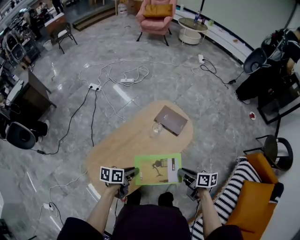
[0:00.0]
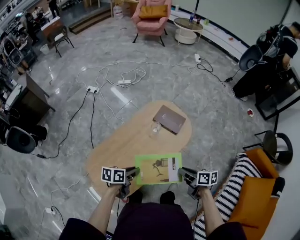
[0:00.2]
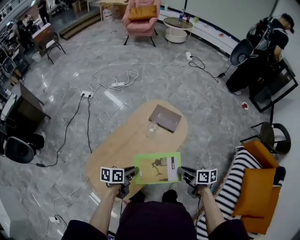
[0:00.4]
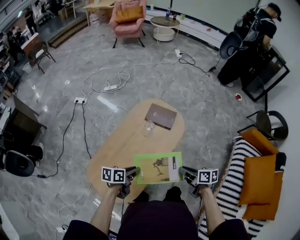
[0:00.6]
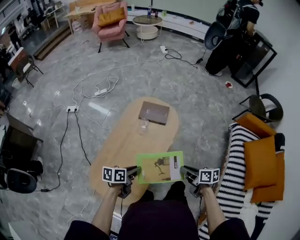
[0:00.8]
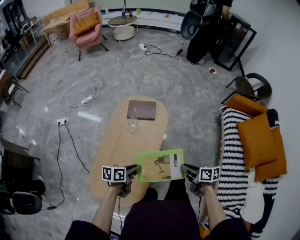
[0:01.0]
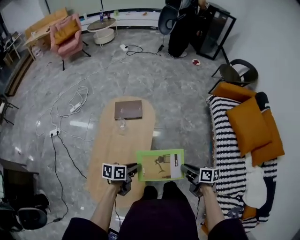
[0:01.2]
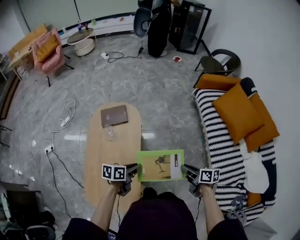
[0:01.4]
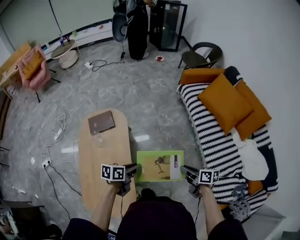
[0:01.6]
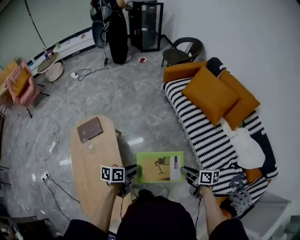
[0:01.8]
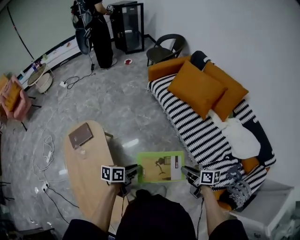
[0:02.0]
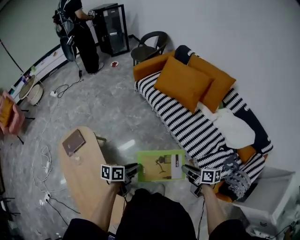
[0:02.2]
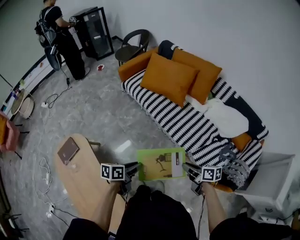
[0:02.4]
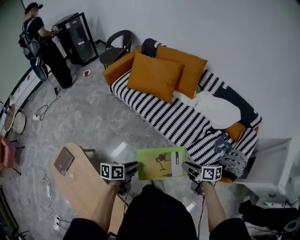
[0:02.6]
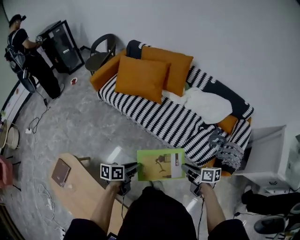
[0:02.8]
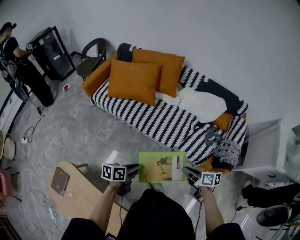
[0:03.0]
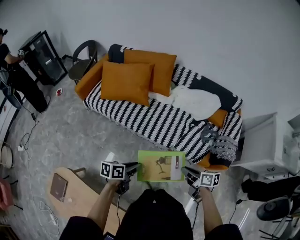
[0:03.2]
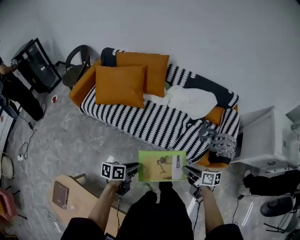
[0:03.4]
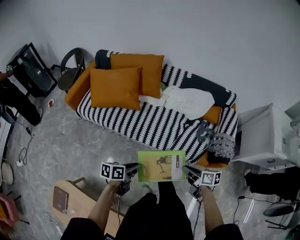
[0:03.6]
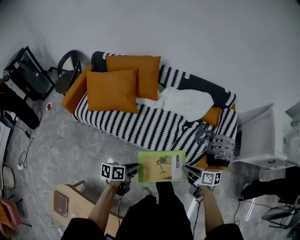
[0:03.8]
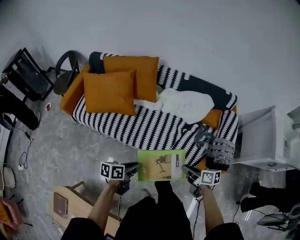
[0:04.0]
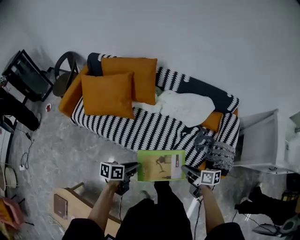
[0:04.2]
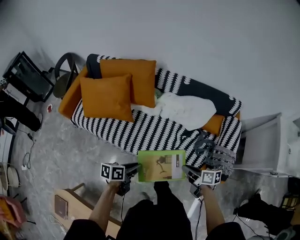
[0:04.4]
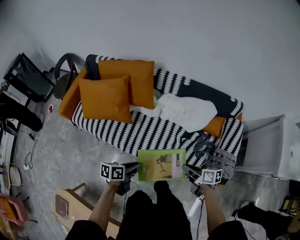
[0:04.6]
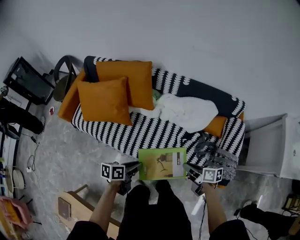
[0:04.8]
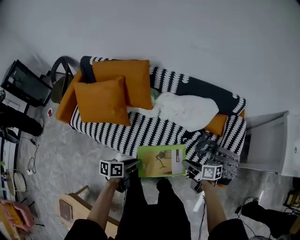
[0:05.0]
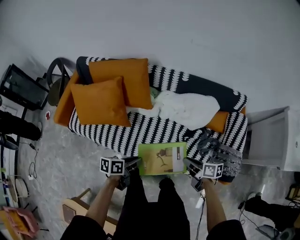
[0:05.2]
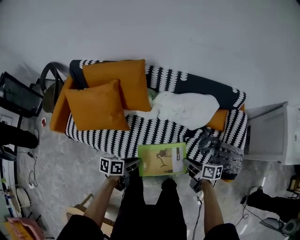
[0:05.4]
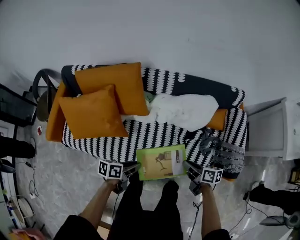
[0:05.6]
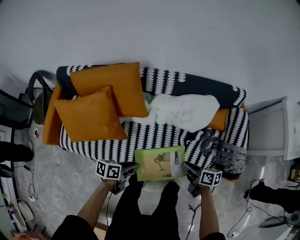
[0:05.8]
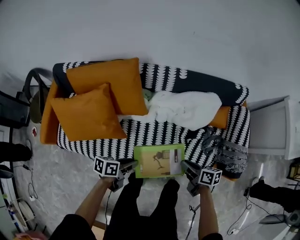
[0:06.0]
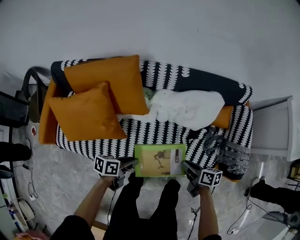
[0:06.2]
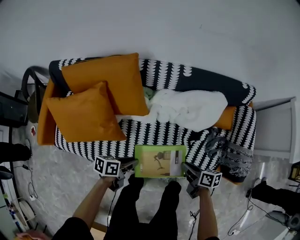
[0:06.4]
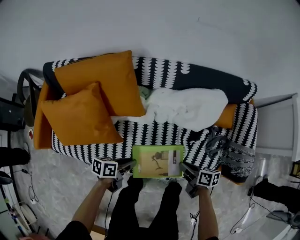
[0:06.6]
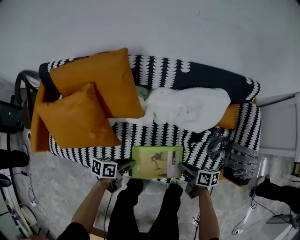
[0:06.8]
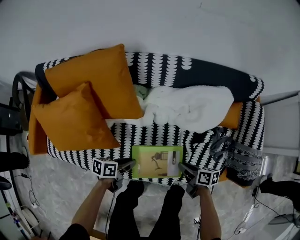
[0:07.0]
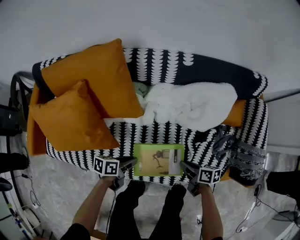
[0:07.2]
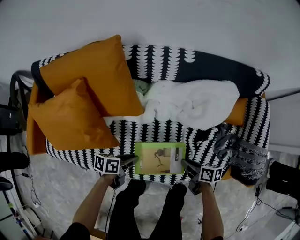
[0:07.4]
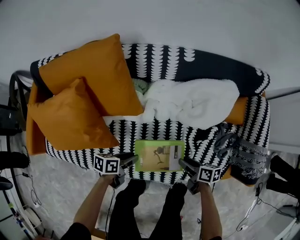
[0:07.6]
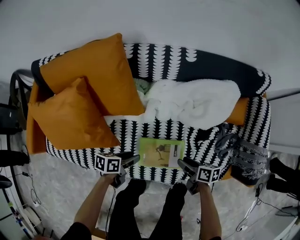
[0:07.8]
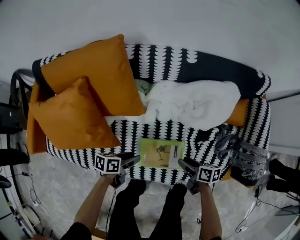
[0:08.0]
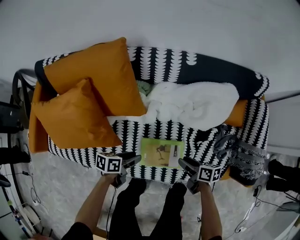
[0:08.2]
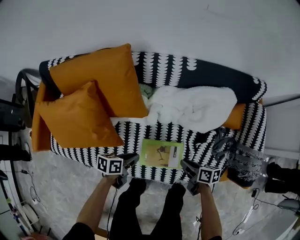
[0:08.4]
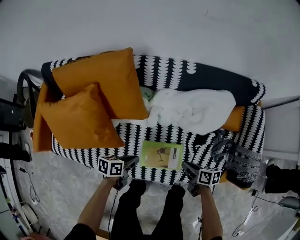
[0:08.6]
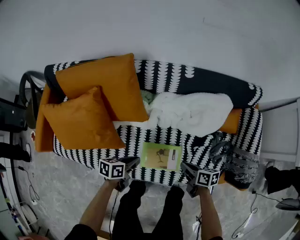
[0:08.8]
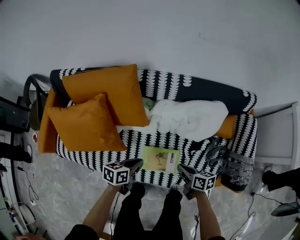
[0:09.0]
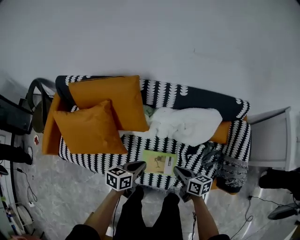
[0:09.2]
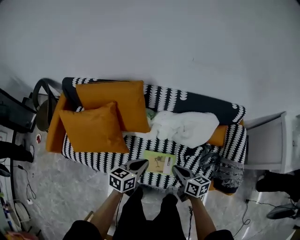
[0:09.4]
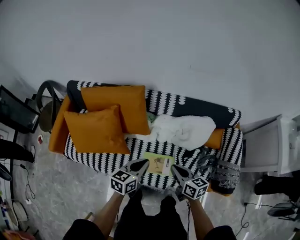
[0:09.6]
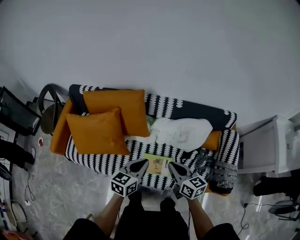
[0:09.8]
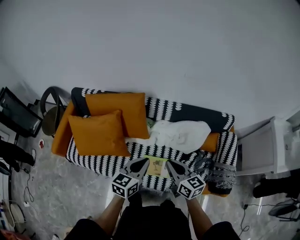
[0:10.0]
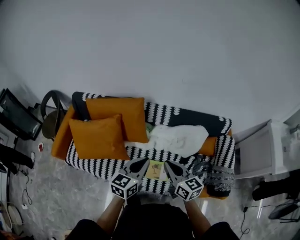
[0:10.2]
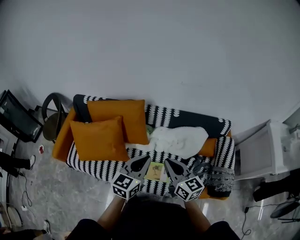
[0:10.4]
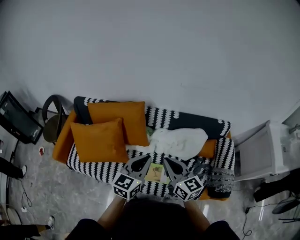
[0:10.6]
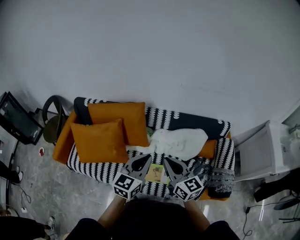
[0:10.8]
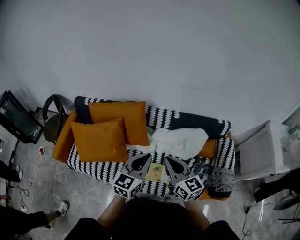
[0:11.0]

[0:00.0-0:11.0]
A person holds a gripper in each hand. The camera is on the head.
0:00.0 to 0:01.6: The left gripper changes place by some 20 cm, and turns by roughly 60 degrees; the right gripper moves approximately 35 cm, and rotates some 60 degrees.
0:01.6 to 0:03.2: The right gripper ends up approximately 35 cm from where it was, and turns by approximately 50 degrees. Meanwhile the left gripper shifts by about 35 cm, and swivels some 60 degrees.
0:03.2 to 0:04.8: The grippers both shift forward and to the right by some 30 cm.
0:04.8 to 0:06.2: The left gripper moves forward, downward and to the left, about 20 cm, and changes its angle by roughly 20 degrees. Meanwhile the right gripper goes some 15 cm to the left, downward and forward.
0:06.2 to 0:07.8: The two grippers go roughly 20 cm downward. The left gripper opens its fingers. Meanwhile the right gripper opens.
0:07.8 to 0:09.4: Both grippers travel together upward, approximately 30 cm. The left gripper rotates approximately 30 degrees, and closes. Meanwhile the right gripper swivels about 30 degrees, and closes up.
0:09.4 to 0:11.0: The grippers both shift upward by roughly 25 cm. The left gripper turns by some 30 degrees. Meanwhile the right gripper turns by approximately 40 degrees.

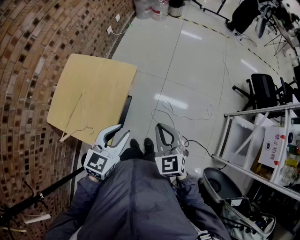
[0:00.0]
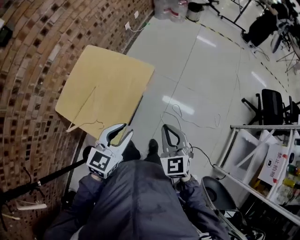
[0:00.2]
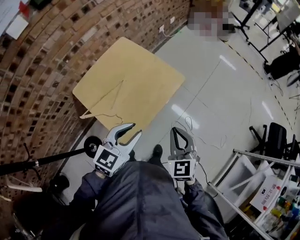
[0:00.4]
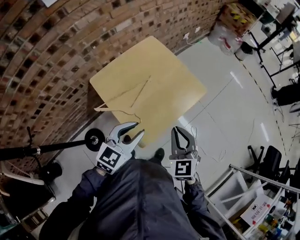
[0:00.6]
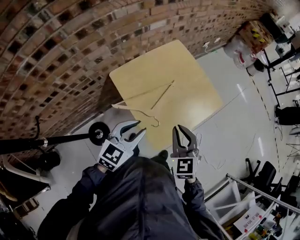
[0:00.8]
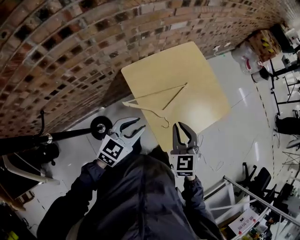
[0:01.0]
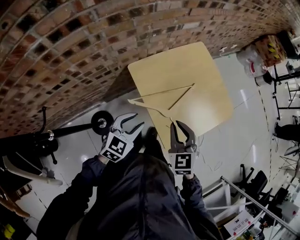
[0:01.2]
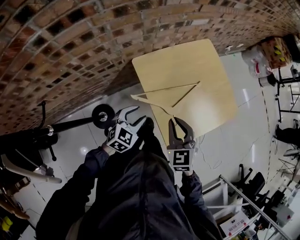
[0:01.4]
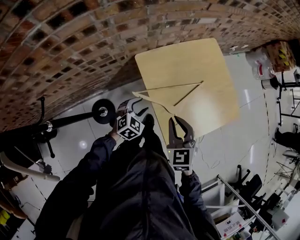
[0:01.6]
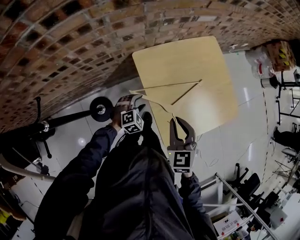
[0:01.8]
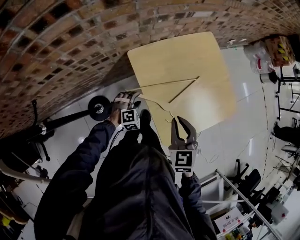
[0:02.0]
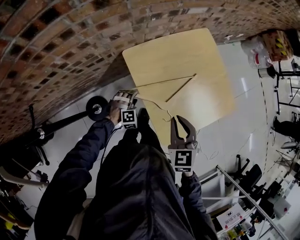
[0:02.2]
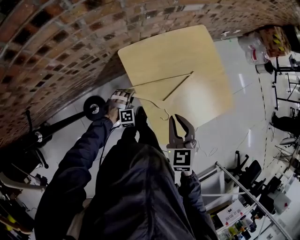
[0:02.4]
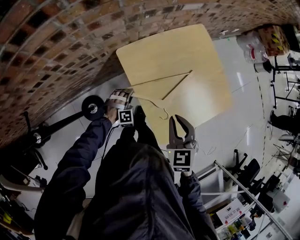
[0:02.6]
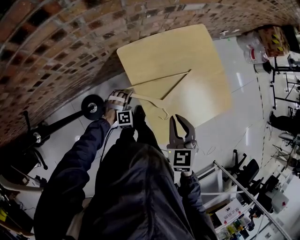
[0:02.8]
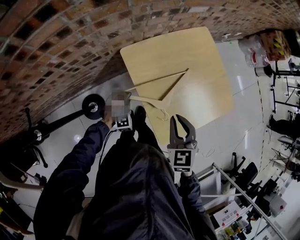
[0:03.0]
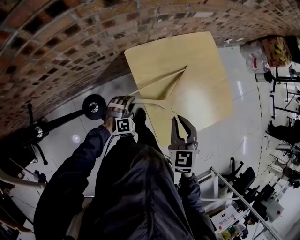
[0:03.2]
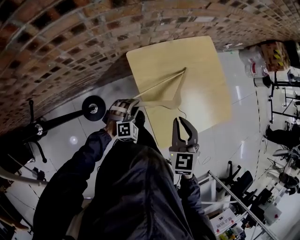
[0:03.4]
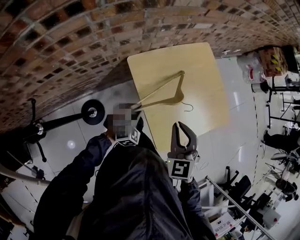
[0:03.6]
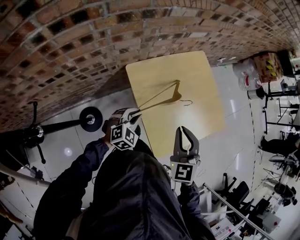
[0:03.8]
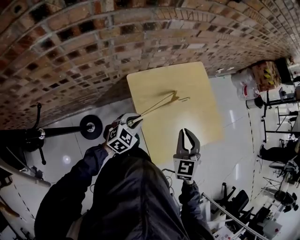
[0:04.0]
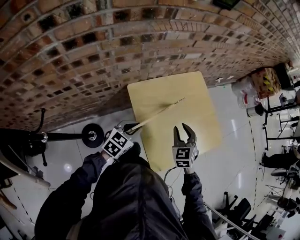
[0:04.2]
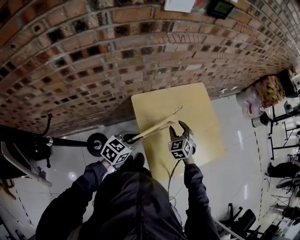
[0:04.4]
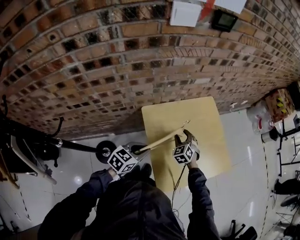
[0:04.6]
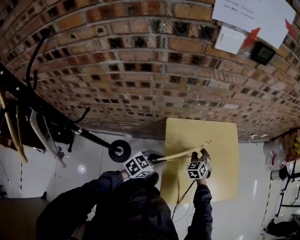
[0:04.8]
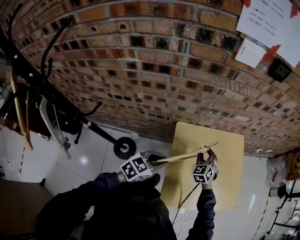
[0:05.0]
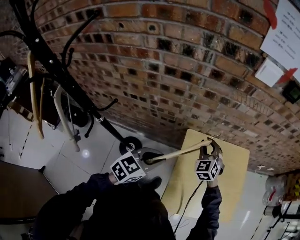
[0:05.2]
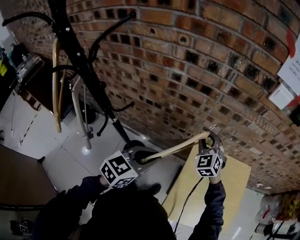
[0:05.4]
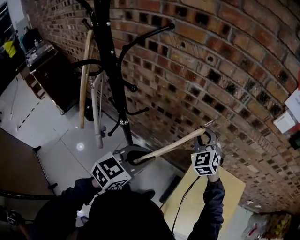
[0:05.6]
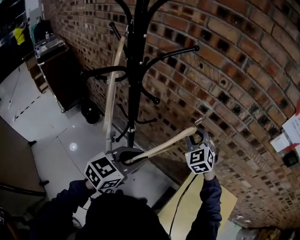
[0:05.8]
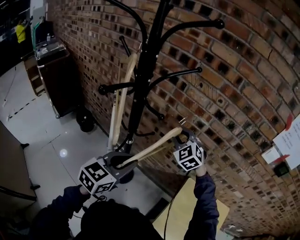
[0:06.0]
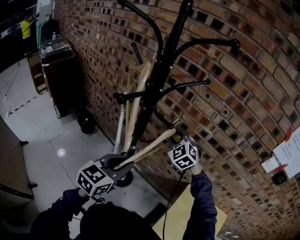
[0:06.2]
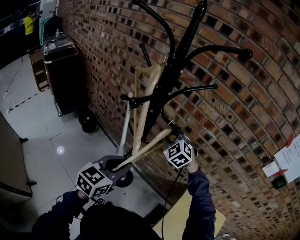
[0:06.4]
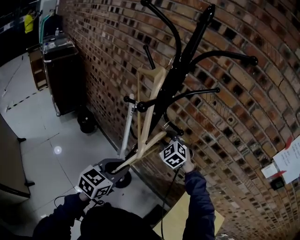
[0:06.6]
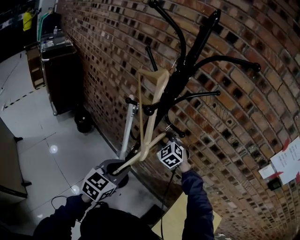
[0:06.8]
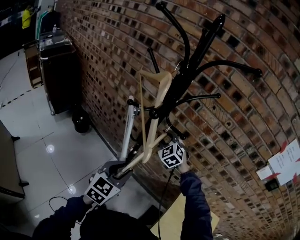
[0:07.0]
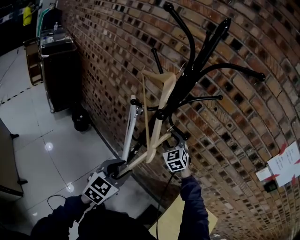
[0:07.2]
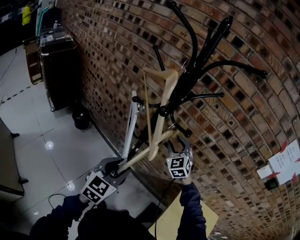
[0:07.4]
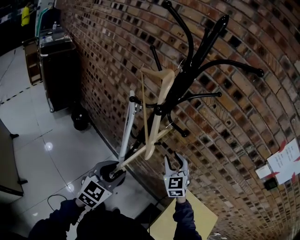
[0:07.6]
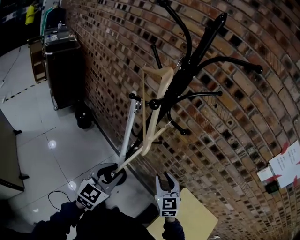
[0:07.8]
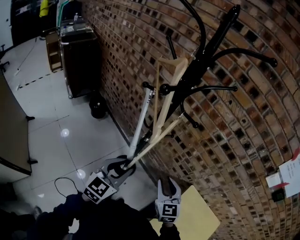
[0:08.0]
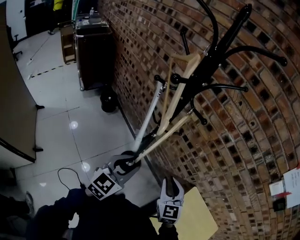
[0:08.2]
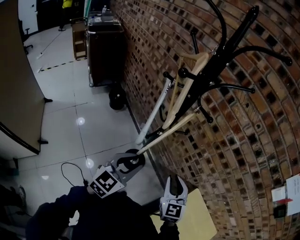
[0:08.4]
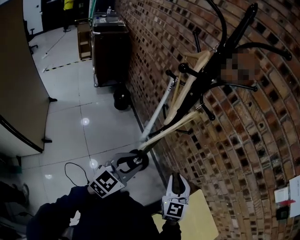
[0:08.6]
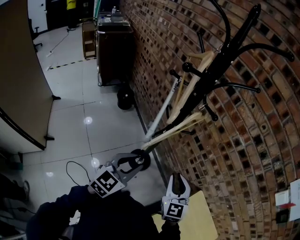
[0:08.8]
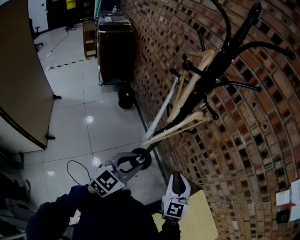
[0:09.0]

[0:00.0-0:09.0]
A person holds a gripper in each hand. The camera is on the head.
0:00.0 to 0:01.6: The two grippers travel together, approximately 40 cm. The left gripper swivels roughly 40 degrees, and opens its fingers. The right gripper changes its angle by about 40 degrees.
0:01.6 to 0:03.0: The left gripper is displaced downward by approximately 10 cm, rolls clockwise, seen from behind, by approximately 50 degrees, and closes.
0:03.0 to 0:04.4: The right gripper moves forward and downward, some 15 cm, rotates about 20 degrees, and opens up, while the left gripper goes some 20 cm upward, and rolls counterclockwise, seen from behind, by about 70 degrees.
0:04.4 to 0:06.0: The left gripper shifts by some 40 cm, and swivels roughly 60 degrees. Meanwhile the right gripper changes place by approximately 60 cm, rotates roughly 70 degrees, and closes.
0:06.0 to 0:07.6: The left gripper goes about 10 cm to the left, and opens its fingers; the right gripper shifts about 10 cm backward and to the left.
0:07.6 to 0:09.0: The left gripper travels backward and to the right by roughly 10 cm. Meanwhile the right gripper moves backward, approximately 15 cm, and swivels about 20 degrees.

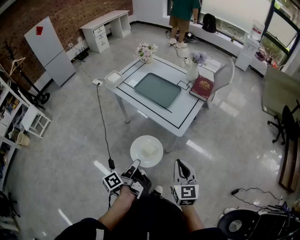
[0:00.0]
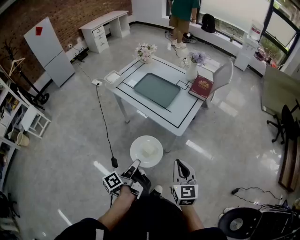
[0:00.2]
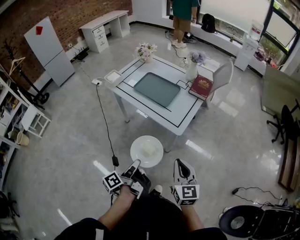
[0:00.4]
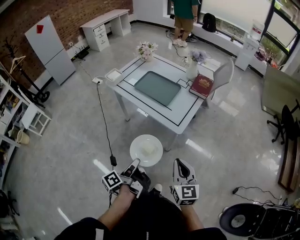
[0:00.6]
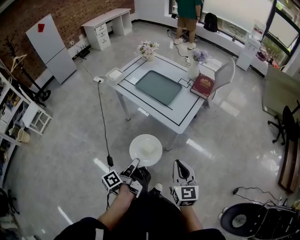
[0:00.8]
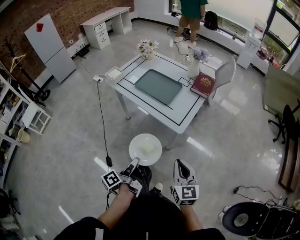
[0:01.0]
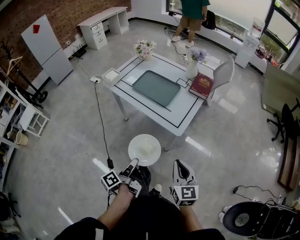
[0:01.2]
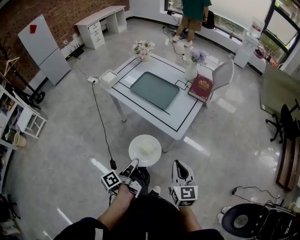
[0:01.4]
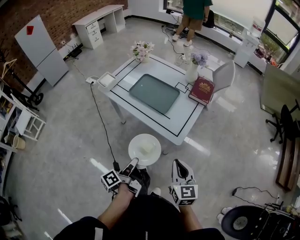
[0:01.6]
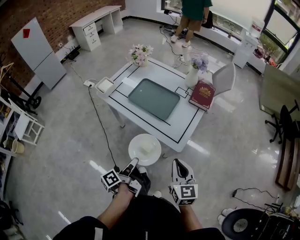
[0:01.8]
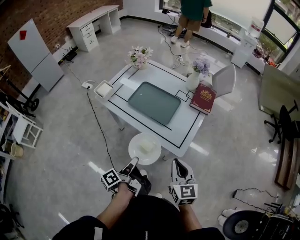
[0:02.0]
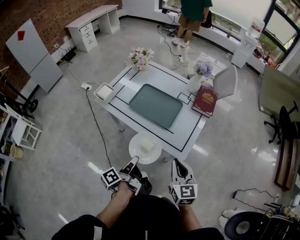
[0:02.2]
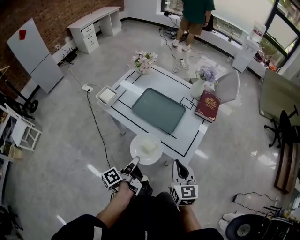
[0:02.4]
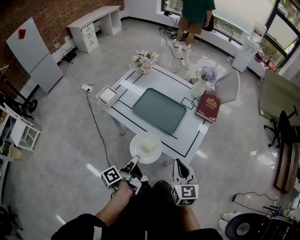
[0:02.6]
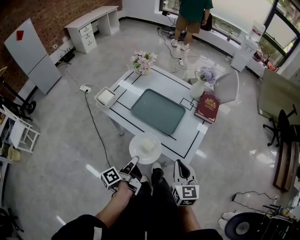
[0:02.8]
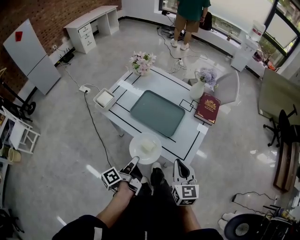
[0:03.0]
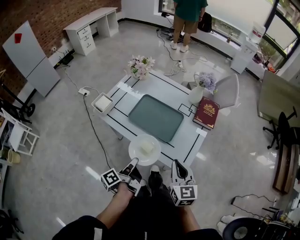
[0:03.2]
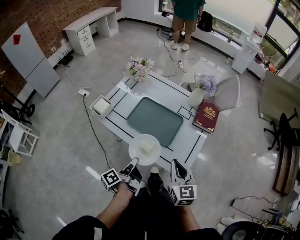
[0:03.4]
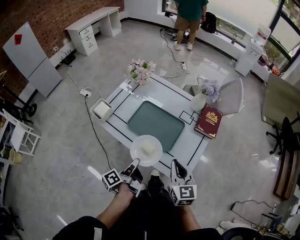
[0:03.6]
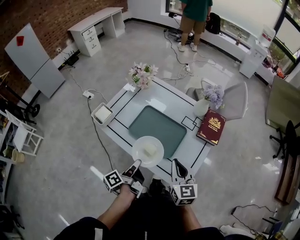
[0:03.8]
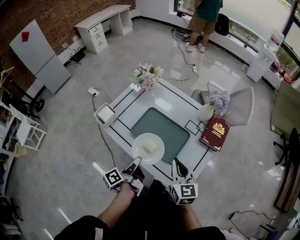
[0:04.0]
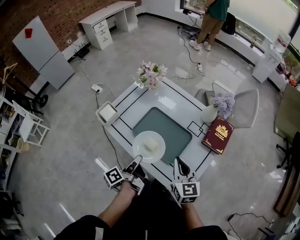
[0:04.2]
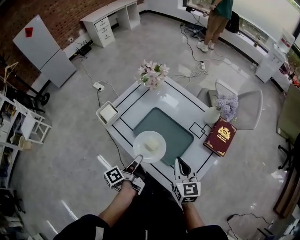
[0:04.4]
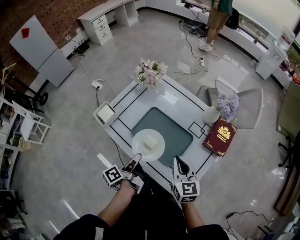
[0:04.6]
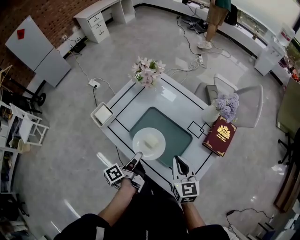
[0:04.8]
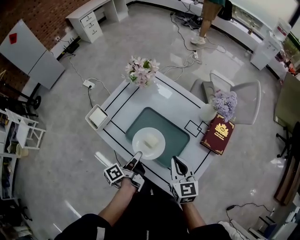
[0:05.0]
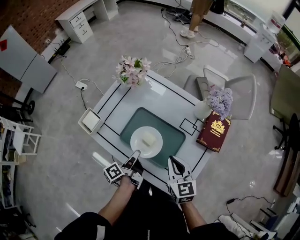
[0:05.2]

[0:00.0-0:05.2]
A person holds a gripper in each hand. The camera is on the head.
0:00.0 to 0:01.8: The right gripper changes place by roughly 15 cm.
0:01.8 to 0:03.4: The right gripper shifts by some 20 cm.
0:03.4 to 0:05.2: The right gripper changes place by approximately 20 cm.
